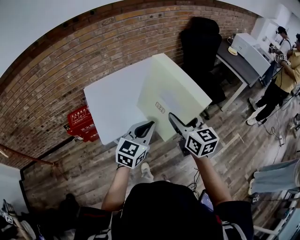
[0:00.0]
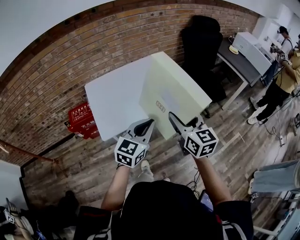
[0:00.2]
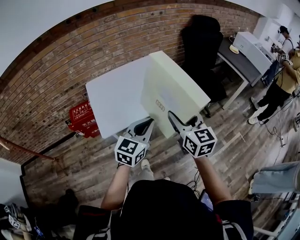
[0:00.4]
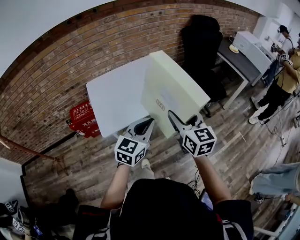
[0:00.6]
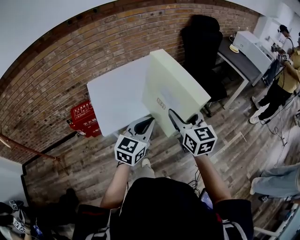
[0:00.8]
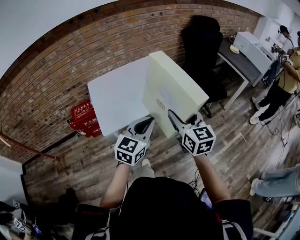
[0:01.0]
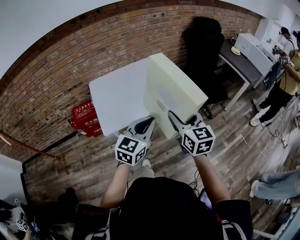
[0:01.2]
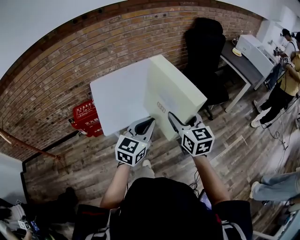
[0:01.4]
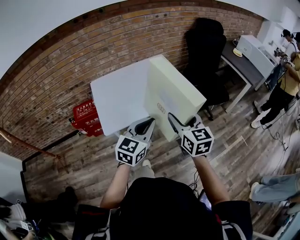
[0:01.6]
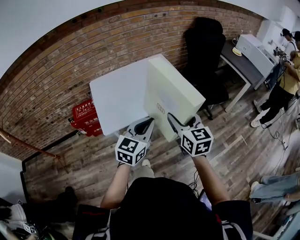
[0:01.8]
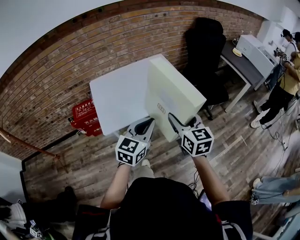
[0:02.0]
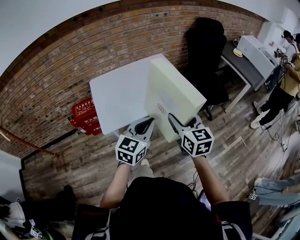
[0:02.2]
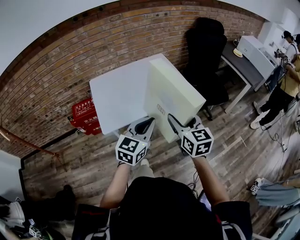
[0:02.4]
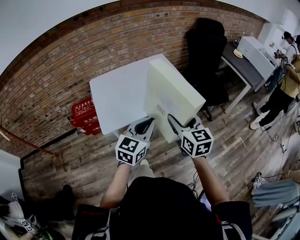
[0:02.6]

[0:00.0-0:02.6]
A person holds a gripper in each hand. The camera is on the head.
0:00.0 to 0:02.6: The grippers stay close to where they were, moving slightly.

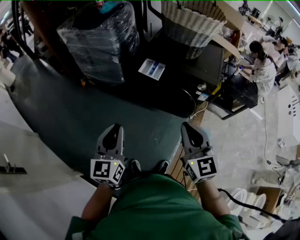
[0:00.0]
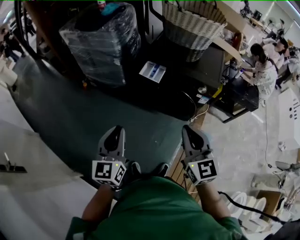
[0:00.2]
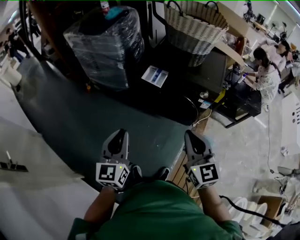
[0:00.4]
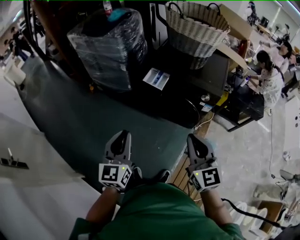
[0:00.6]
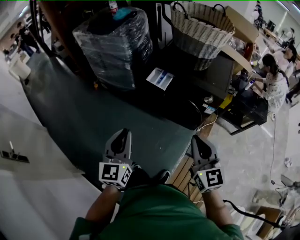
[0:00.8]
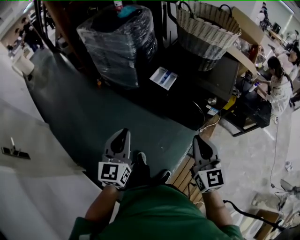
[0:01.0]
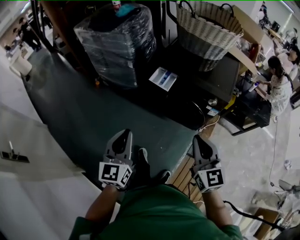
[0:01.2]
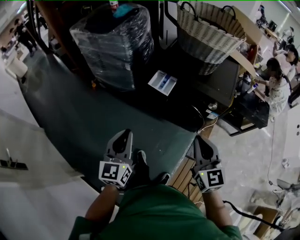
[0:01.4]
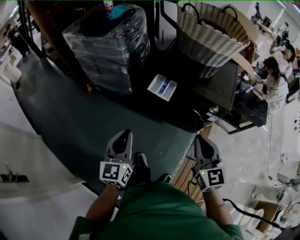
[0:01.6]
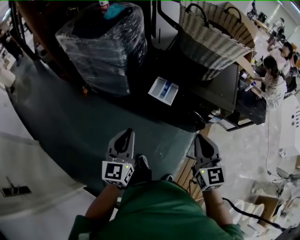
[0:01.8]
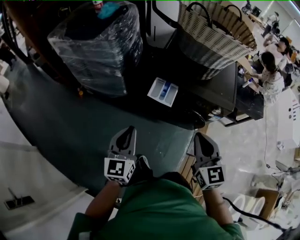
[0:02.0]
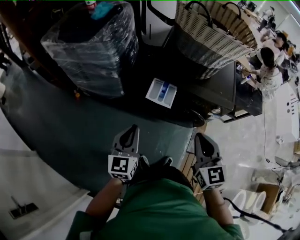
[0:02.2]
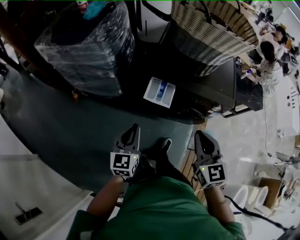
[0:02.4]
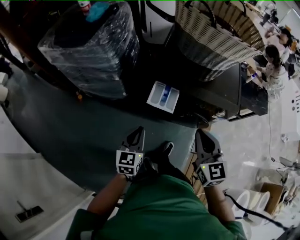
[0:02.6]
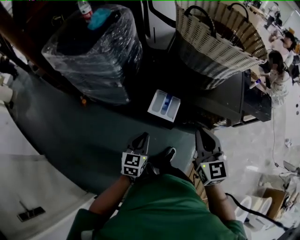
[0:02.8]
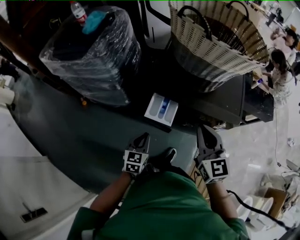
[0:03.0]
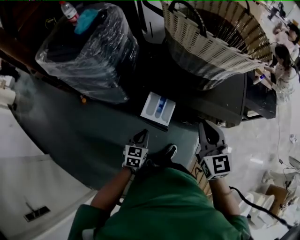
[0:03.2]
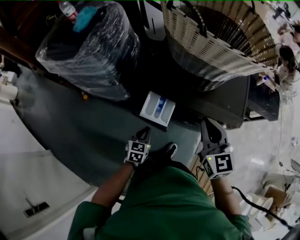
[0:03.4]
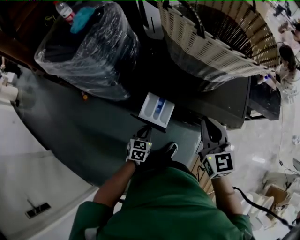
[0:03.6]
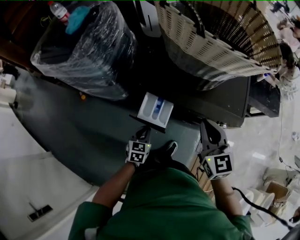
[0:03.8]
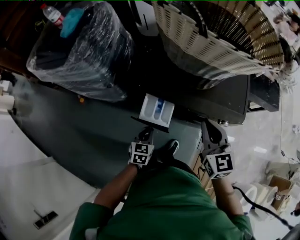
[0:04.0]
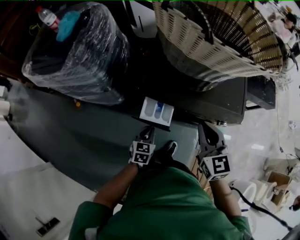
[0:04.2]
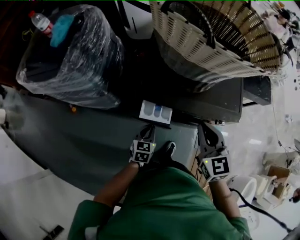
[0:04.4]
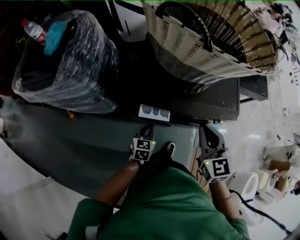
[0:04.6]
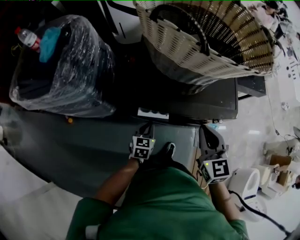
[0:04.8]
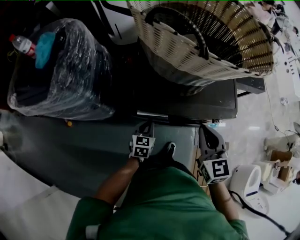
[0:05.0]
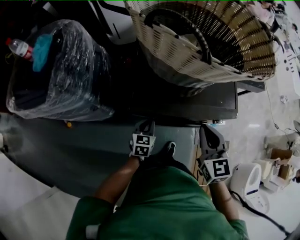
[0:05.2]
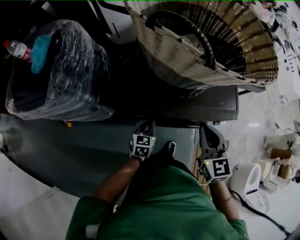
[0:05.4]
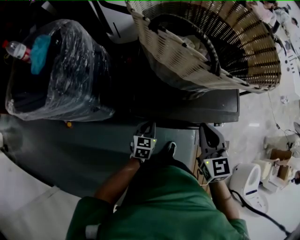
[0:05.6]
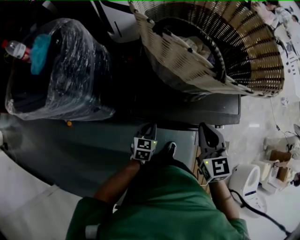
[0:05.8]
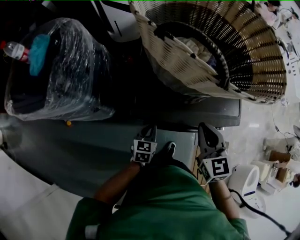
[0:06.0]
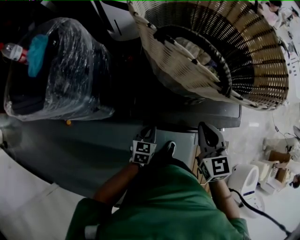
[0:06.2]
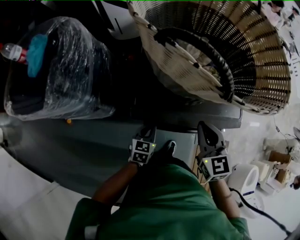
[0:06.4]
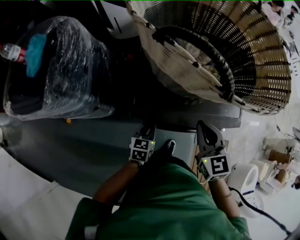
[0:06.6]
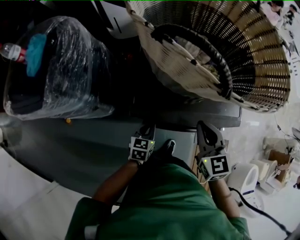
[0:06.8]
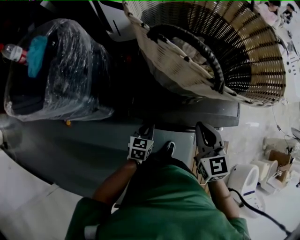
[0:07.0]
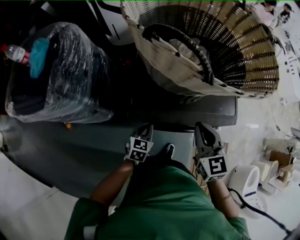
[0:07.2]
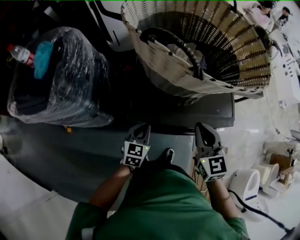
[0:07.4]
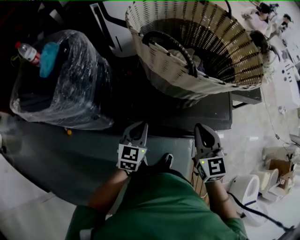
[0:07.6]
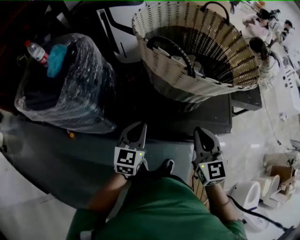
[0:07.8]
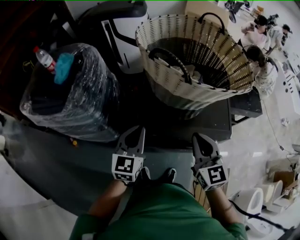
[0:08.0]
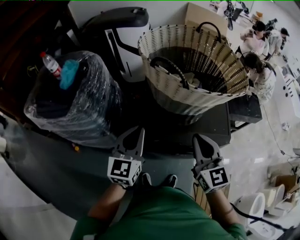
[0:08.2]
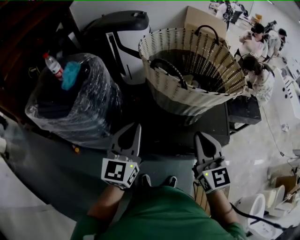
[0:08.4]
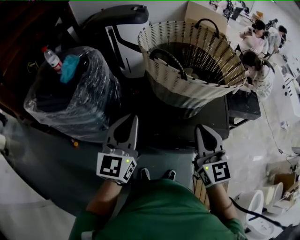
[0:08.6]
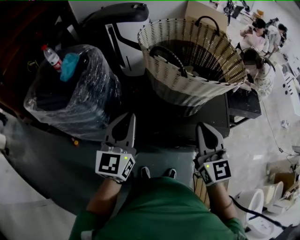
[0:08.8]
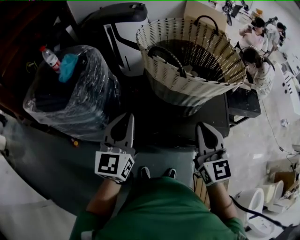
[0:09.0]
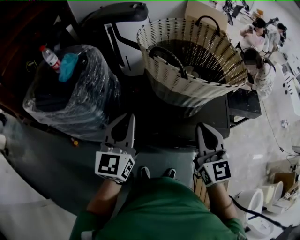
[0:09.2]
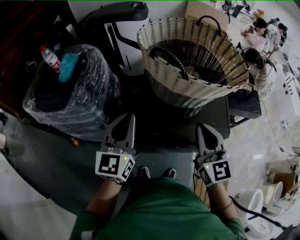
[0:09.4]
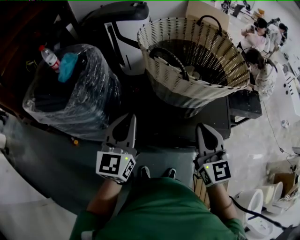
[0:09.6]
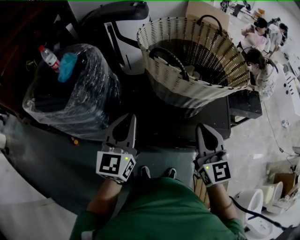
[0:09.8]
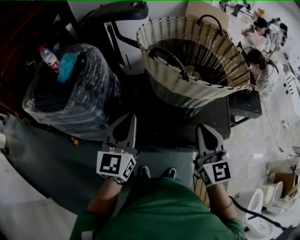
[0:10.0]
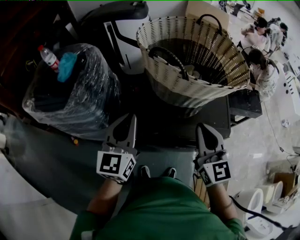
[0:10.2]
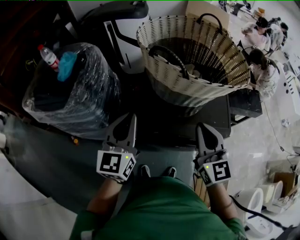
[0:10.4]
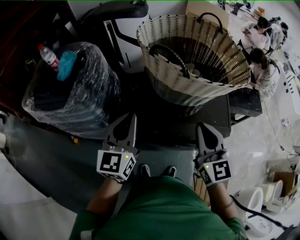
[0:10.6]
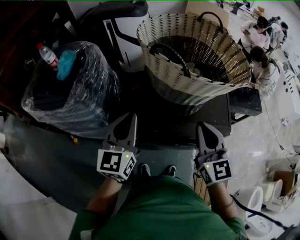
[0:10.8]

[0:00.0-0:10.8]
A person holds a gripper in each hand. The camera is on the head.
0:00.0 to 0:01.6: Both grippers travel together forward, approximately 10 cm.
0:01.6 to 0:03.0: The left gripper heads forward and downward, covering roughly 30 cm, and changes its angle by approximately 30 degrees; the right gripper shifts about 20 cm forward.
0:03.0 to 0:04.6: The left gripper moves forward and downward, about 15 cm. The right gripper moves forward, about 5 cm.
0:04.6 to 0:06.2: Both grippers travel together forward, approximately 10 cm.
0:06.2 to 0:07.8: The left gripper goes roughly 20 cm upward, and swivels about 20 degrees, while the right gripper travels upward by some 5 cm.
0:07.8 to 0:09.2: The left gripper travels upward by about 15 cm, and changes its angle by some 20 degrees. The right gripper is displaced upward by some 10 cm.
0:09.2 to 0:10.8: The grippers move only a little.

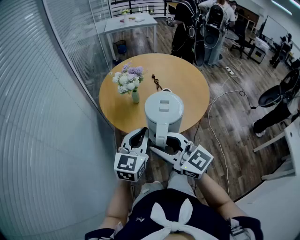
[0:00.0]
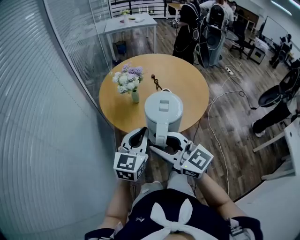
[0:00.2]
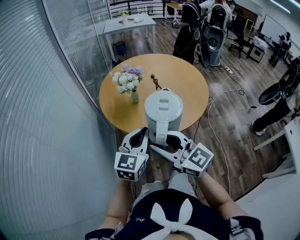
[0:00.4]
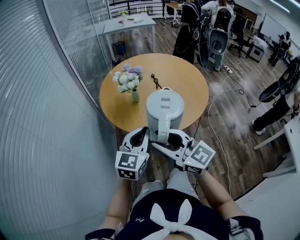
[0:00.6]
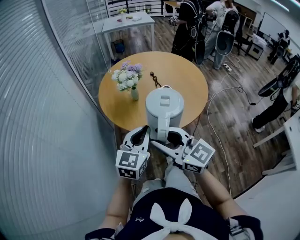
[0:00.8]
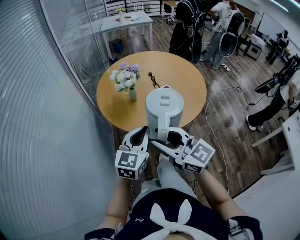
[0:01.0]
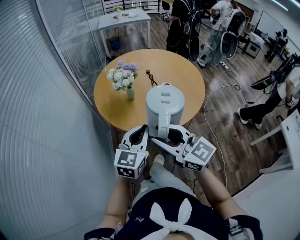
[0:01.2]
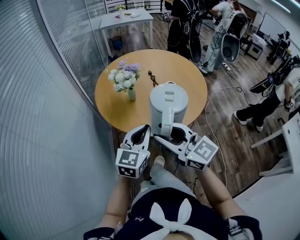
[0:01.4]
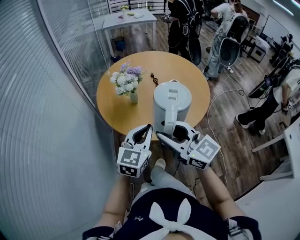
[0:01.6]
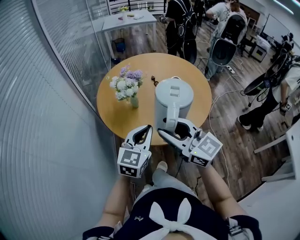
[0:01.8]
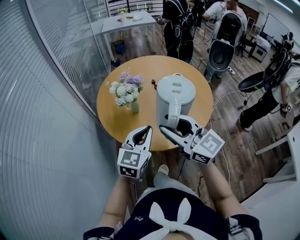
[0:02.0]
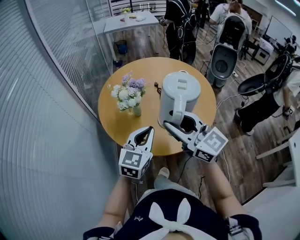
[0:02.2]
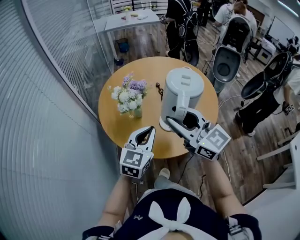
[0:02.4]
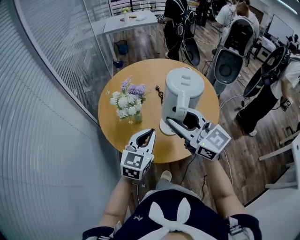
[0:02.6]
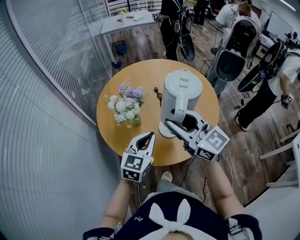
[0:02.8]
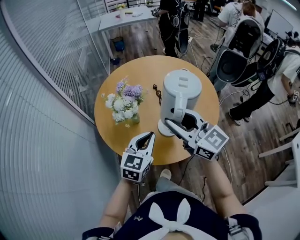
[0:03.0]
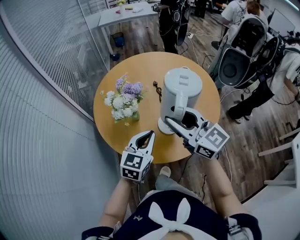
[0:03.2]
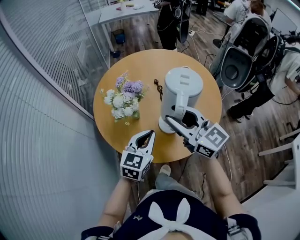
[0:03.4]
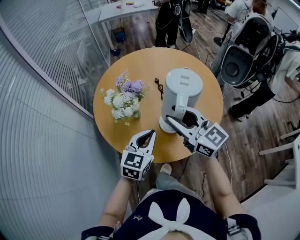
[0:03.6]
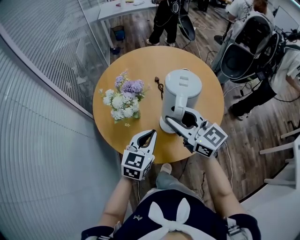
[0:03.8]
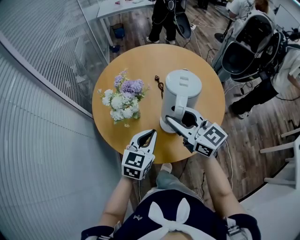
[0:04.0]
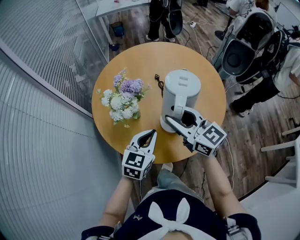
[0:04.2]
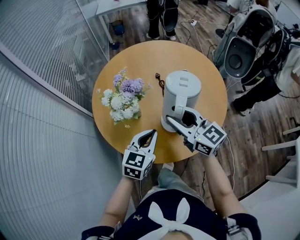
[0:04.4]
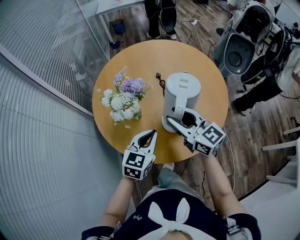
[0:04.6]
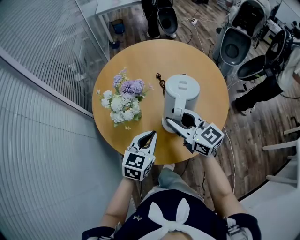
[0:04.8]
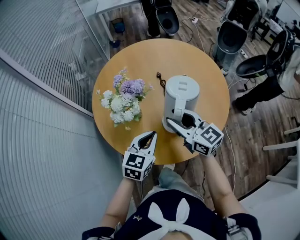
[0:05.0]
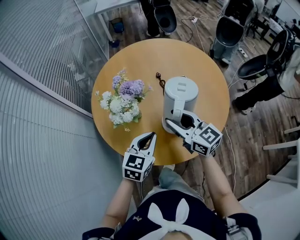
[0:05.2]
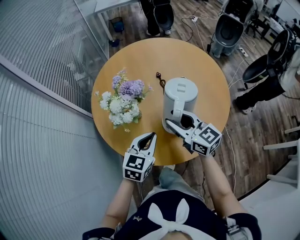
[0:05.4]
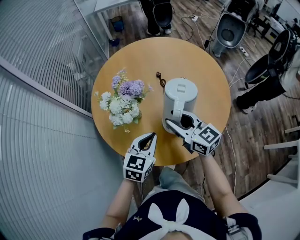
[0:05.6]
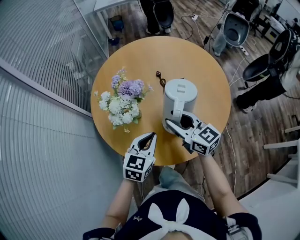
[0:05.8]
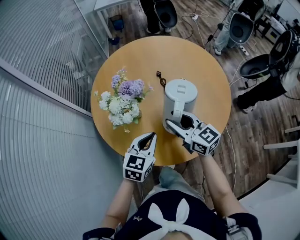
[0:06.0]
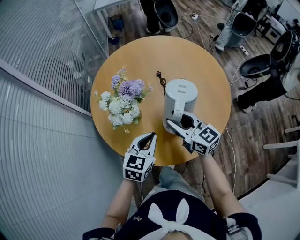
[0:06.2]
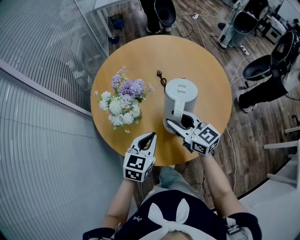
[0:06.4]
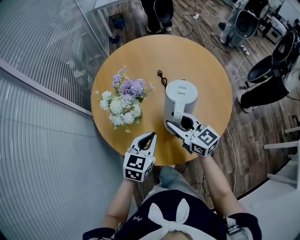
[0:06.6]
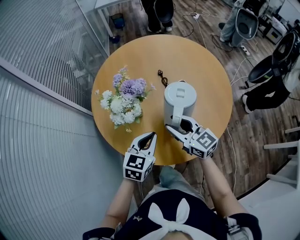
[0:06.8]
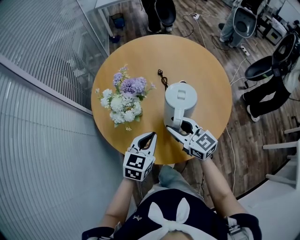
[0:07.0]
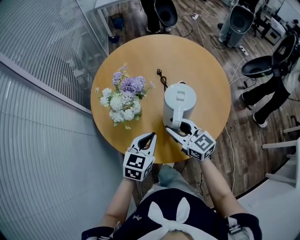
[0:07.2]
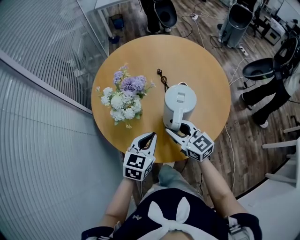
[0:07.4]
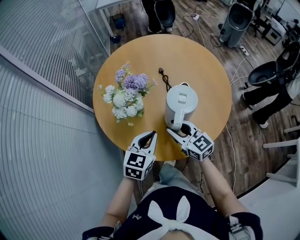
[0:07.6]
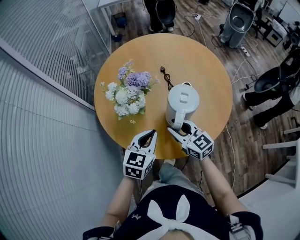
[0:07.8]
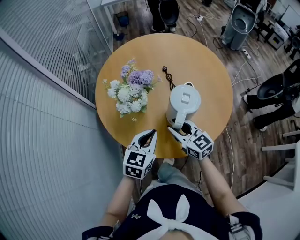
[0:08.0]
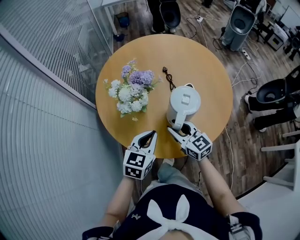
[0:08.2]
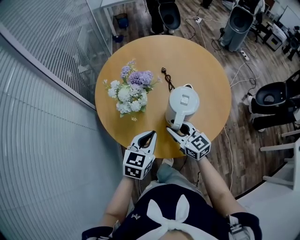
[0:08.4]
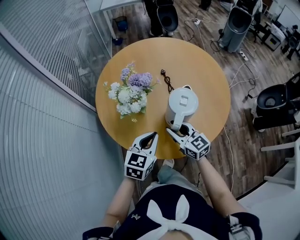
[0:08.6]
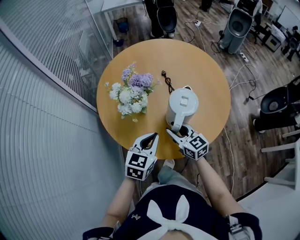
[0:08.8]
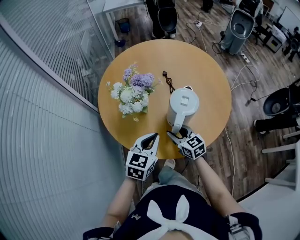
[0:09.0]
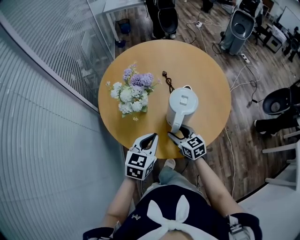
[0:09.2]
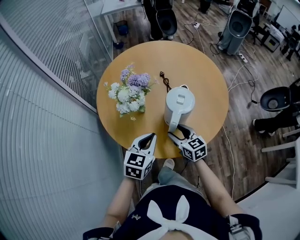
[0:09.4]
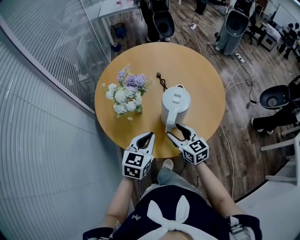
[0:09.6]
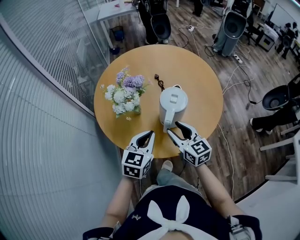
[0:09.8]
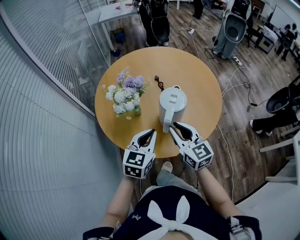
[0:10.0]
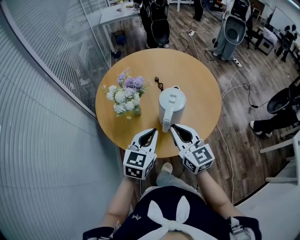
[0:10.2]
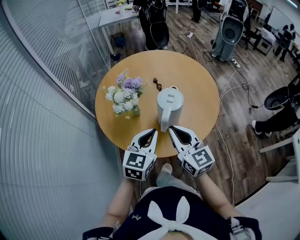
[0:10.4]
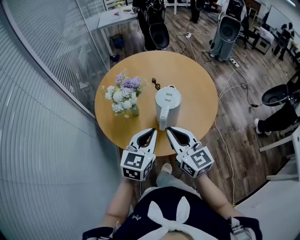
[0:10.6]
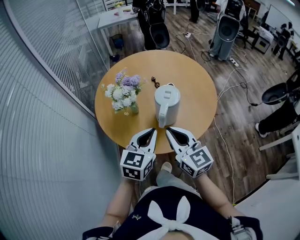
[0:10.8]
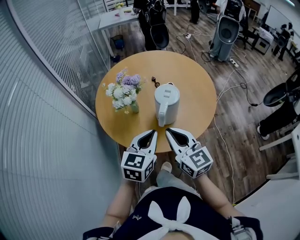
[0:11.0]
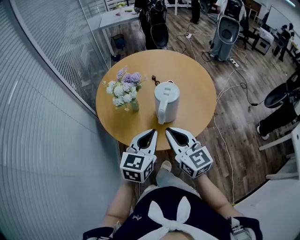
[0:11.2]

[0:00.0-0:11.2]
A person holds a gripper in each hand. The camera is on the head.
0:00.0 to 0:01.6: The right gripper is displaced forward by roughly 5 cm. Meanwhile the left gripper moves some 5 cm.
0:01.6 to 0:03.2: The two grippers go about 20 cm forward.
0:03.2 to 0:04.8: The right gripper travels downward by roughly 10 cm.
0:04.8 to 0:06.4: The right gripper heads downward, covering some 5 cm.
0:06.4 to 0:08.0: The right gripper goes some 10 cm backward and downward.
0:09.6 to 0:11.2: The right gripper shifts about 20 cm upward and backward, and closes its fingers. Meanwhile the left gripper travels upward and backward by roughly 10 cm.
